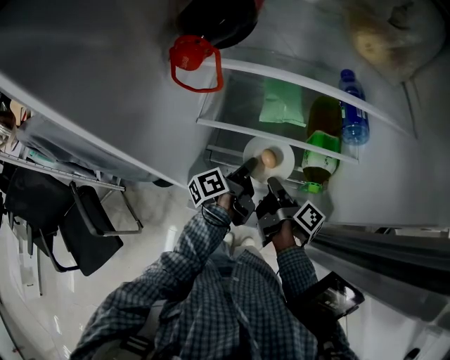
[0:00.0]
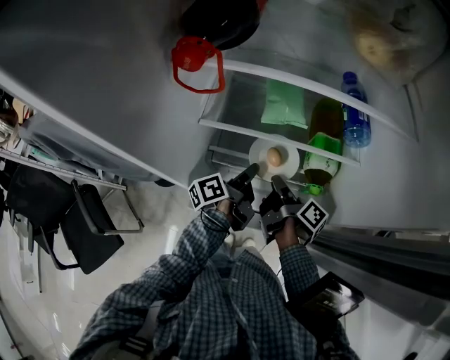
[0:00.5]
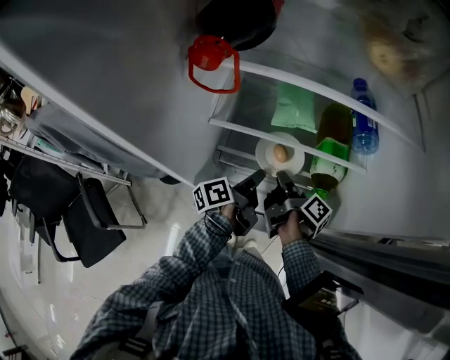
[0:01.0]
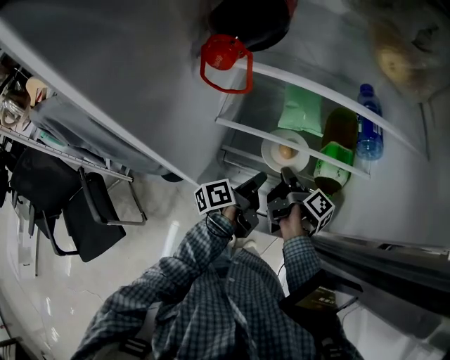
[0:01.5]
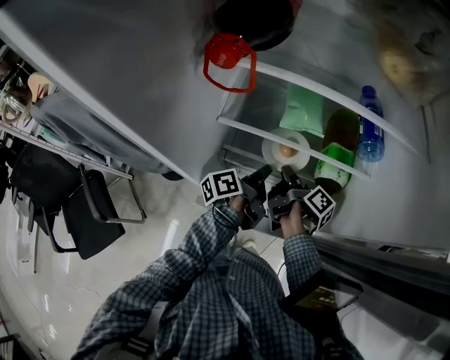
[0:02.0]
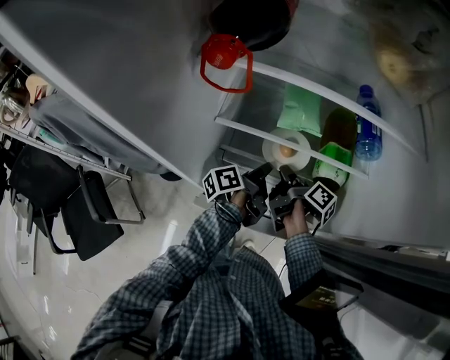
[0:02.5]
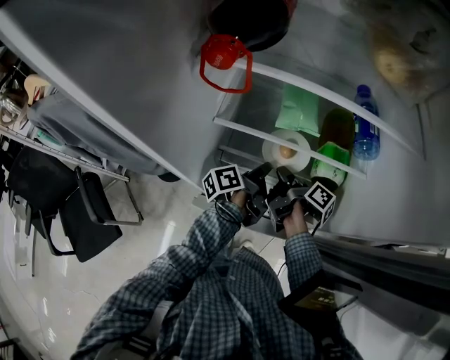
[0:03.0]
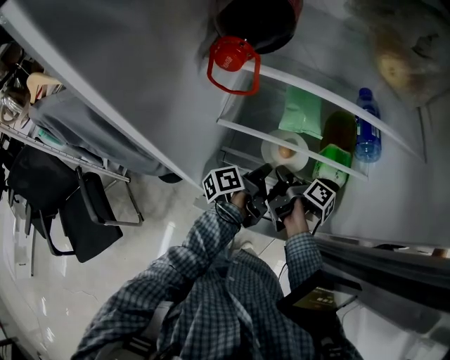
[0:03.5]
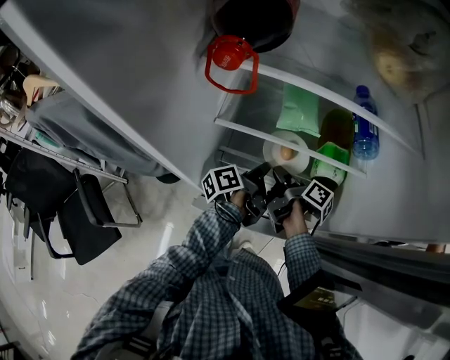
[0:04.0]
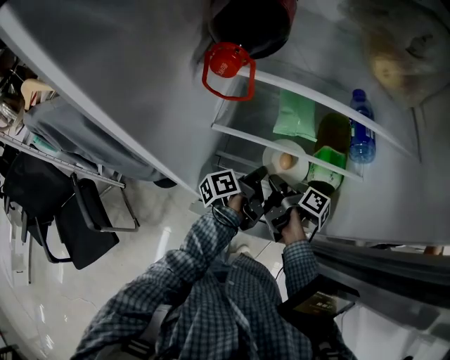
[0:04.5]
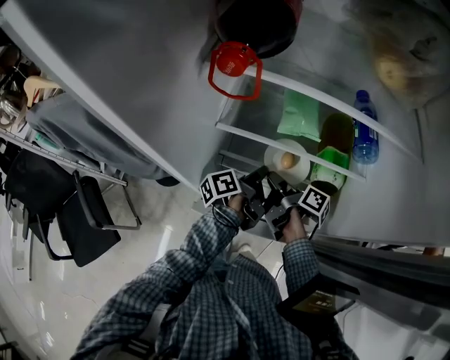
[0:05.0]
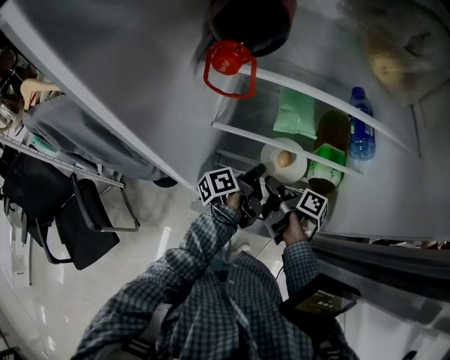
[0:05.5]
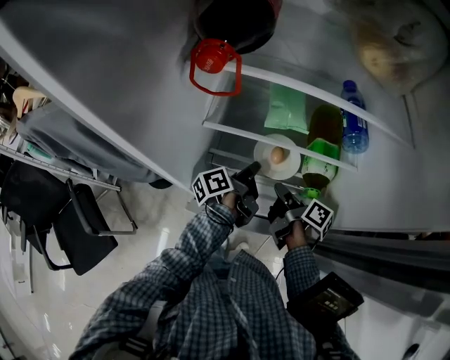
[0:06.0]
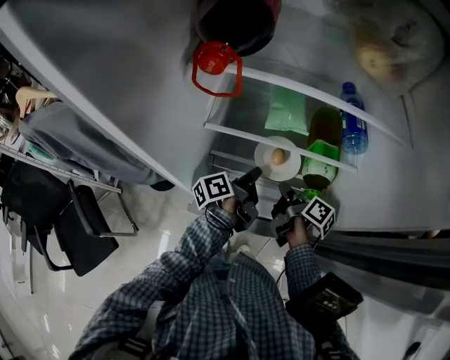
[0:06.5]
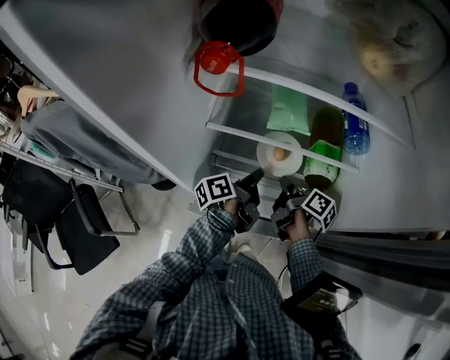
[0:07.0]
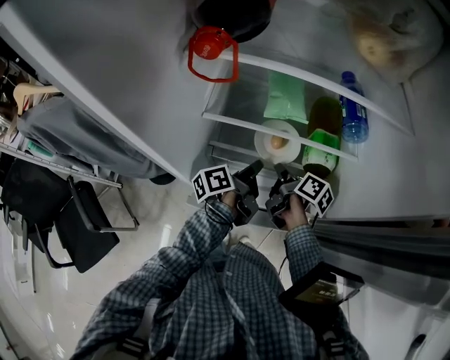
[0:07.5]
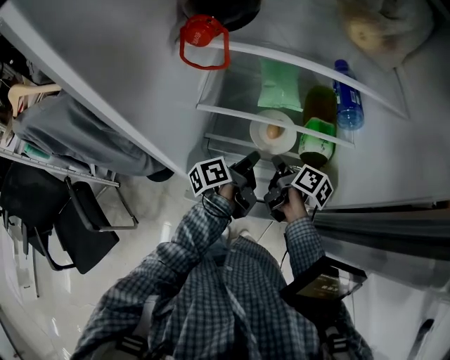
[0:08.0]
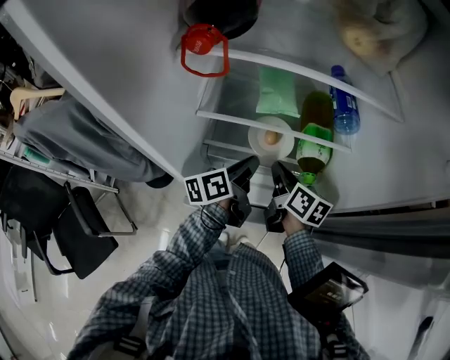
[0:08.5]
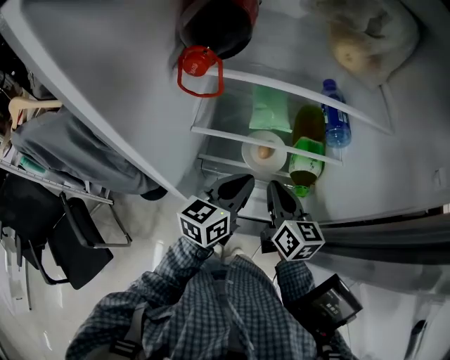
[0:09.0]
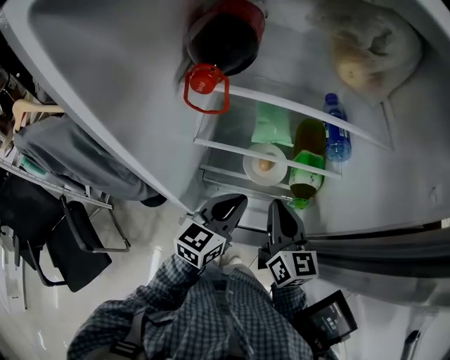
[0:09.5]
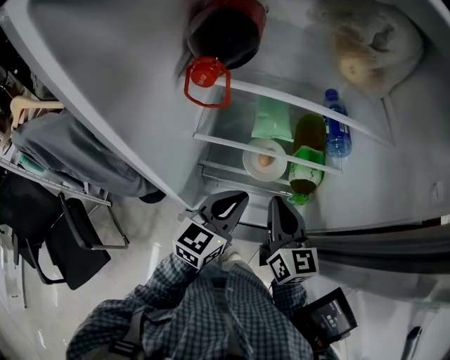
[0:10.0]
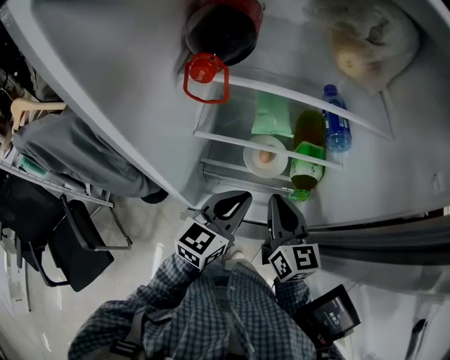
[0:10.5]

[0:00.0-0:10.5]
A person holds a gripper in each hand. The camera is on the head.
0:00.0 to 0:02.0: The right gripper changes place by some 5 cm.
0:04.0 to 0:06.5: The right gripper changes place by roughly 5 cm.
0:06.5 to 0:08.5: The right gripper shifts by roughly 5 cm, and changes its angle by approximately 30 degrees.
0:08.5 to 0:10.5: The right gripper travels upward by roughly 10 cm, and changes its angle by roughly 40 degrees.

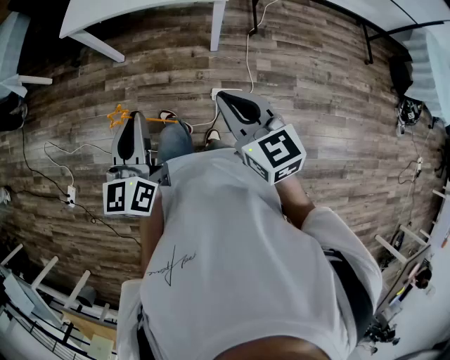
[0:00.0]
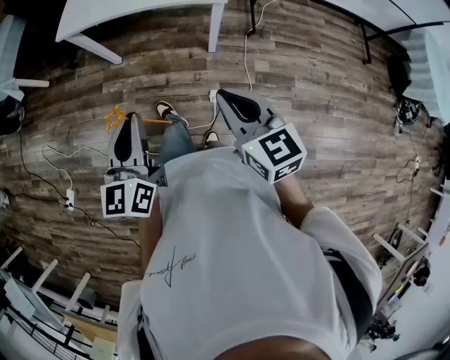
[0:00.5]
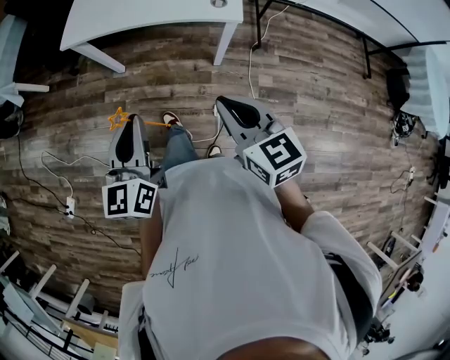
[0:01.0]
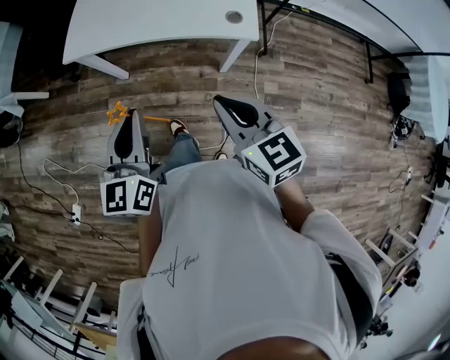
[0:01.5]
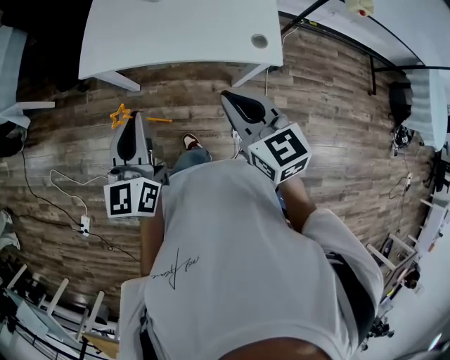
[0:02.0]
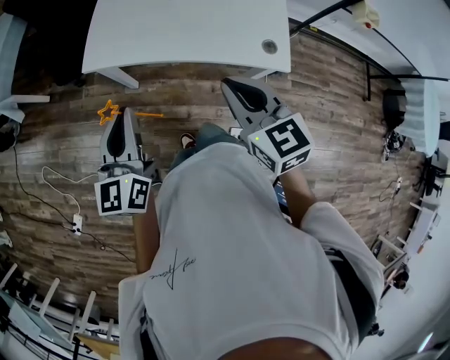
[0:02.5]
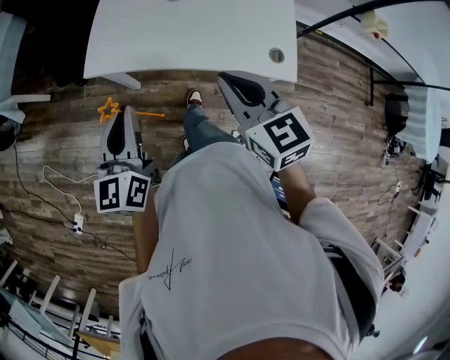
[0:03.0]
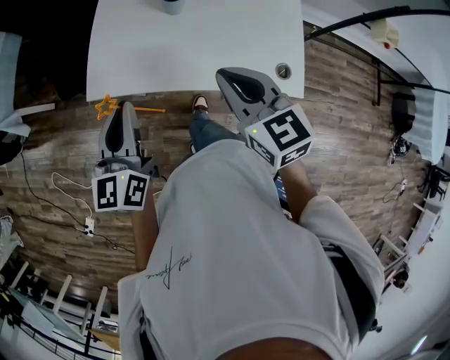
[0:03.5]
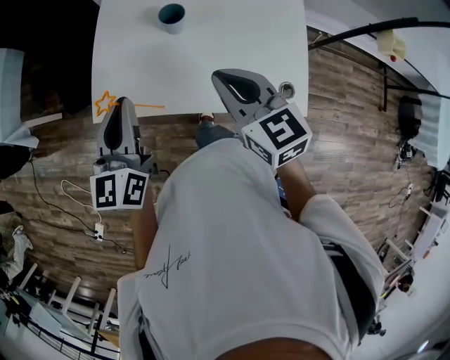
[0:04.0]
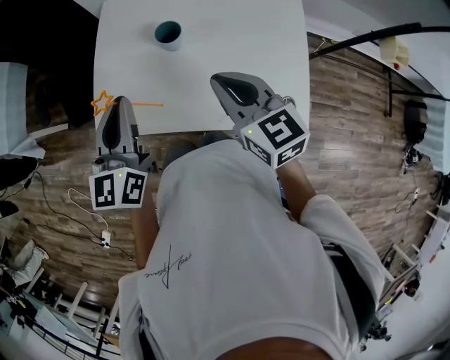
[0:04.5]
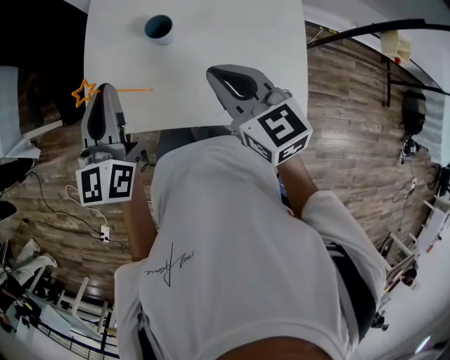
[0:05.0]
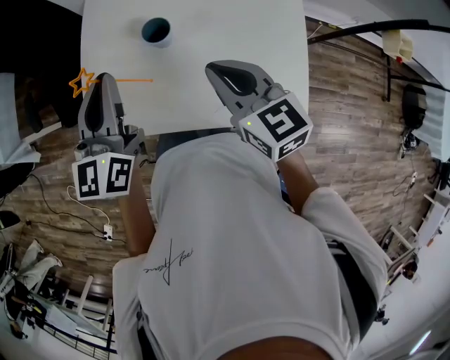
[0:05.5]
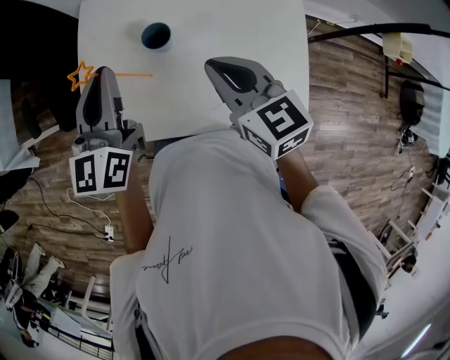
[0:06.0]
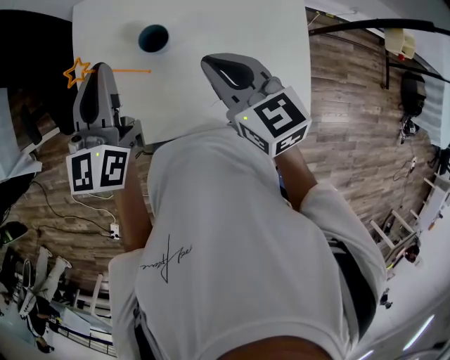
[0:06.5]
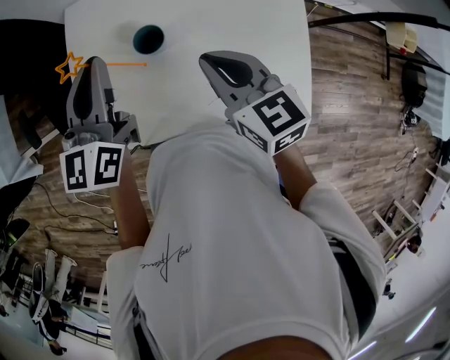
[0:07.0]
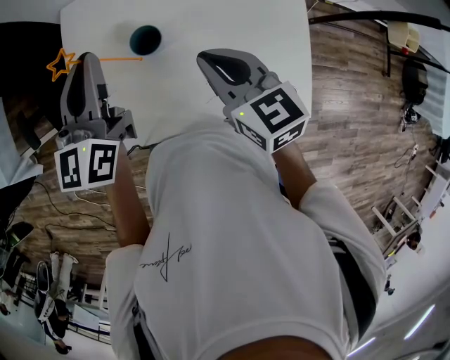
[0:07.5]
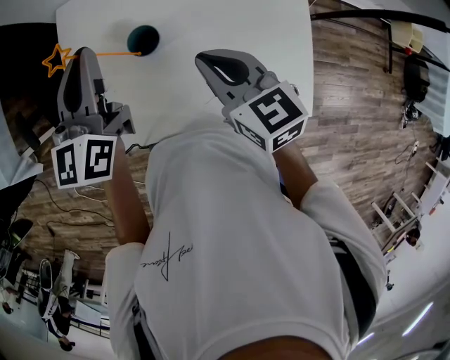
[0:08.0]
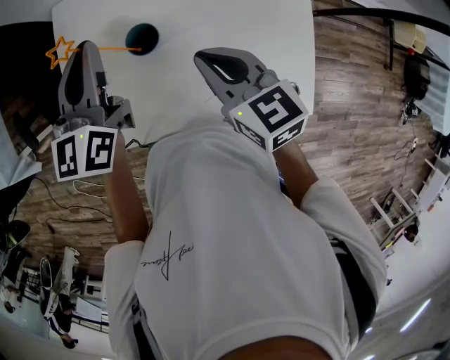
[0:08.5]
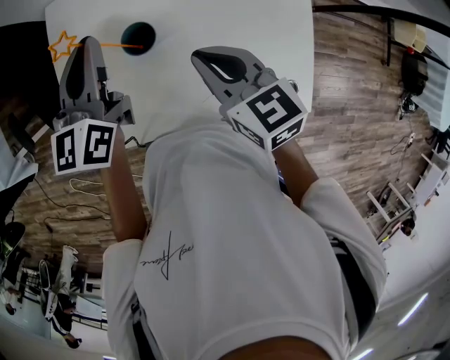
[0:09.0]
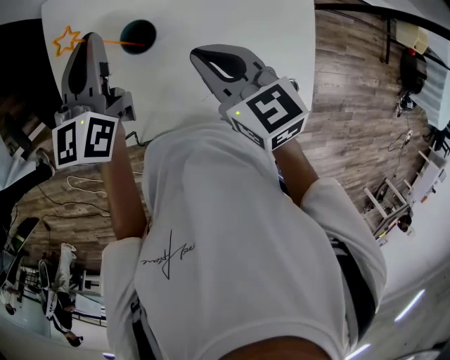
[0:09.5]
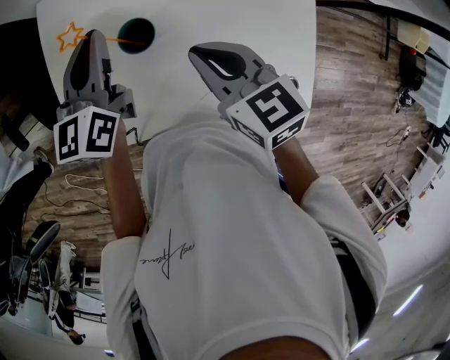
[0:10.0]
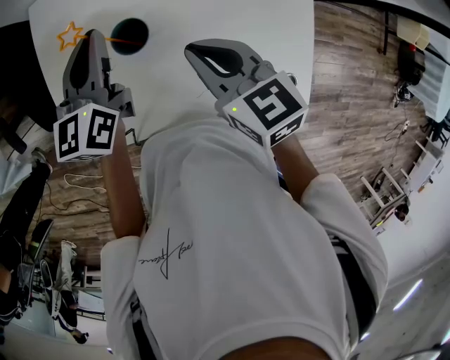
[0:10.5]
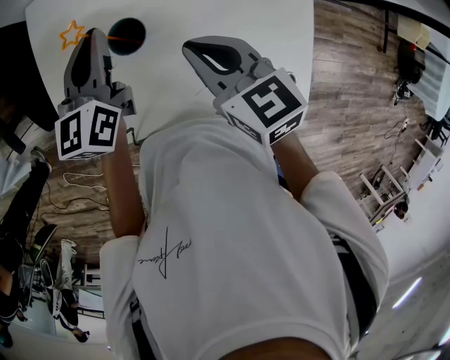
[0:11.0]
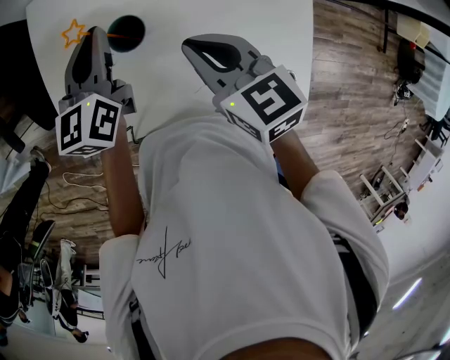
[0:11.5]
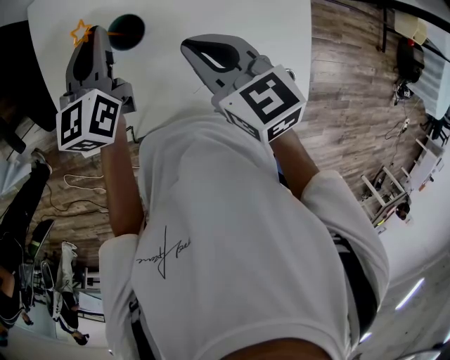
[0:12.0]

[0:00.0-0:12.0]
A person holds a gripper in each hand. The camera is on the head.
0:00.0 to 0:02.0: Both grippers travel together forward, some 35 cm.
0:02.0 to 0:04.0: Both grippers move forward, roughly 25 cm.
0:04.0 to 0:06.0: The grippers both shift forward by approximately 15 cm.
0:06.0 to 0:08.0: The left gripper goes some 10 cm forward, while the right gripper shifts by approximately 5 cm.
0:08.0 to 0:10.0: The left gripper travels downward by some 10 cm.
0:10.0 to 0:12.0: There are only small adjustments of the grippers.

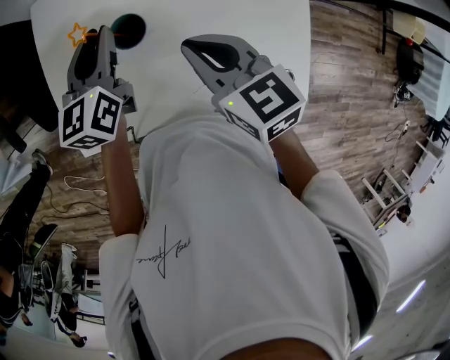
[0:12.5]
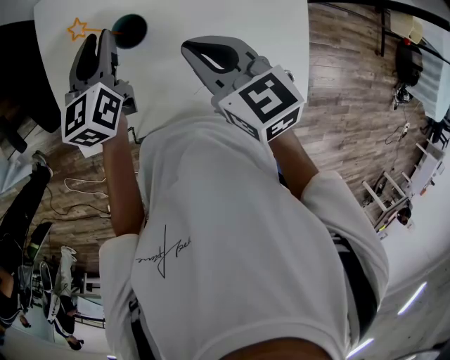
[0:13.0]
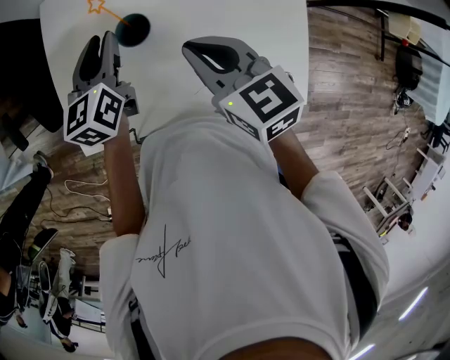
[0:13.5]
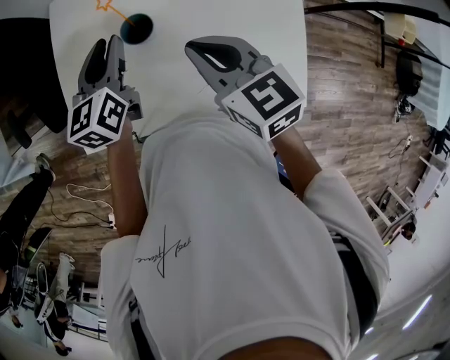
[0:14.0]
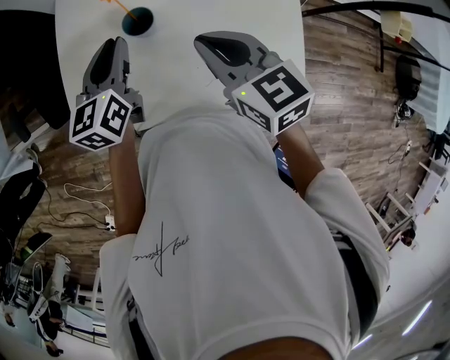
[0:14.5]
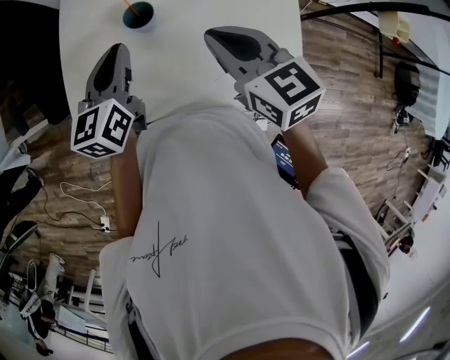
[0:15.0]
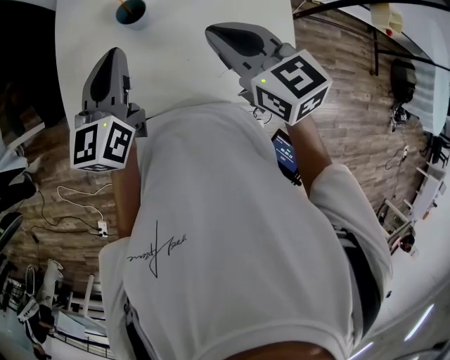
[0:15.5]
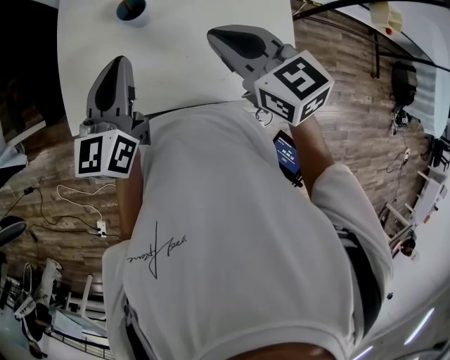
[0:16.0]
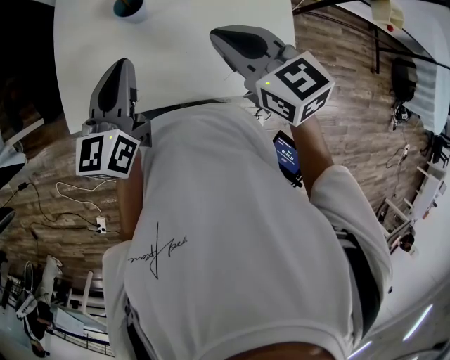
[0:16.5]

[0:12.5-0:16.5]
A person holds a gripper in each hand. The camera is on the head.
0:12.5 to 0:14.5: The left gripper moves backward, some 5 cm; the right gripper moves approximately 5 cm.
0:14.5 to 0:16.5: The left gripper is displaced backward by roughly 10 cm, while the right gripper travels backward by roughly 5 cm.

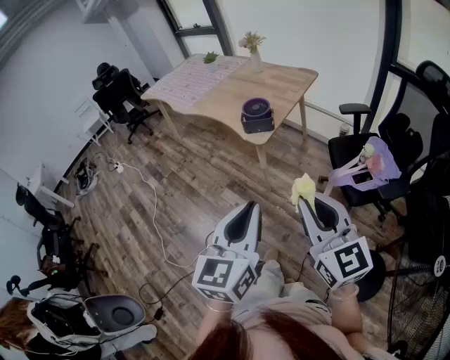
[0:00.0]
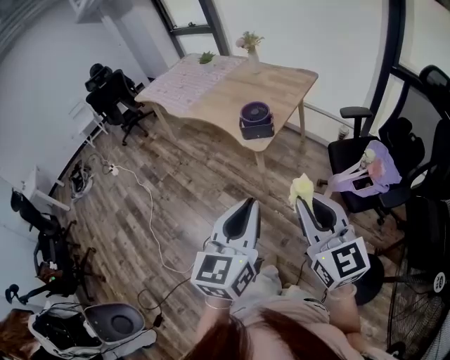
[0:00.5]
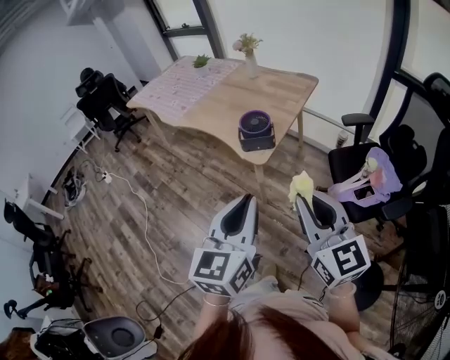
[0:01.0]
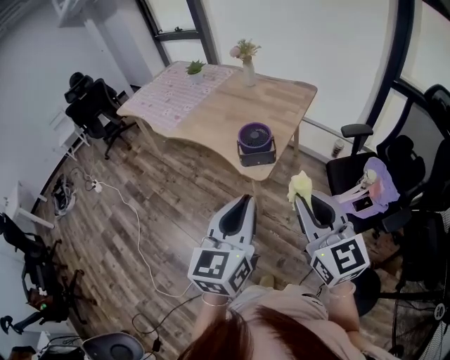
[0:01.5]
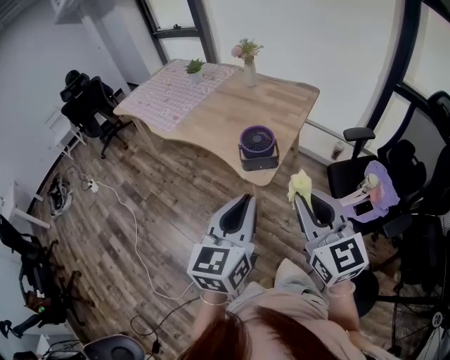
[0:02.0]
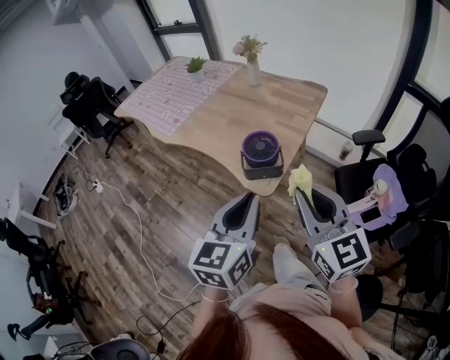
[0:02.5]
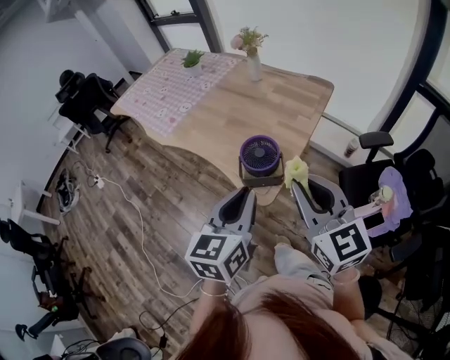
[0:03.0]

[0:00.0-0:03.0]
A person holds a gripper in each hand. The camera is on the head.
0:00.0 to 0:01.5: Both grippers move forward, about 25 cm.
0:01.5 to 0:03.0: Both grippers travel together forward, some 20 cm.
